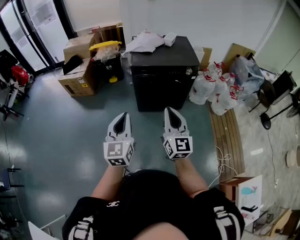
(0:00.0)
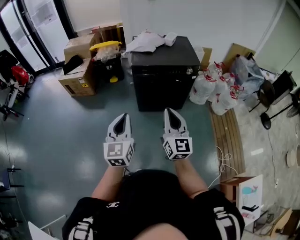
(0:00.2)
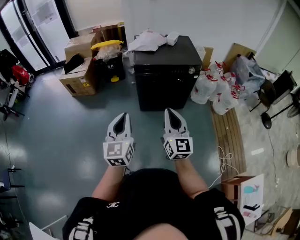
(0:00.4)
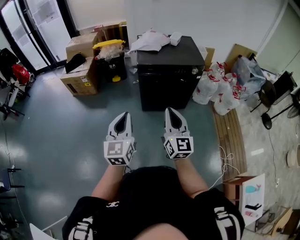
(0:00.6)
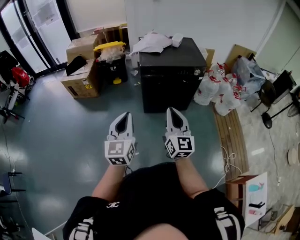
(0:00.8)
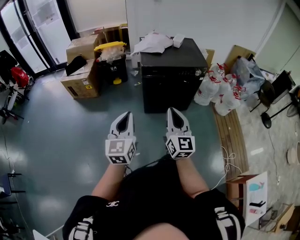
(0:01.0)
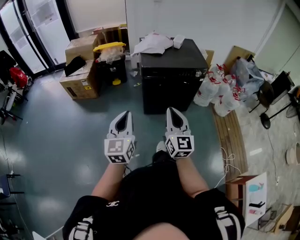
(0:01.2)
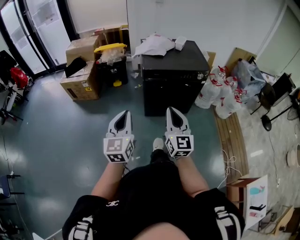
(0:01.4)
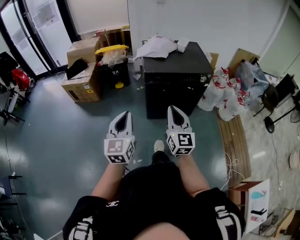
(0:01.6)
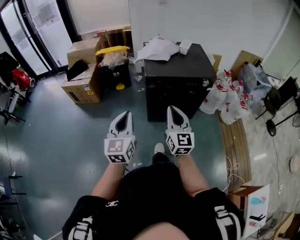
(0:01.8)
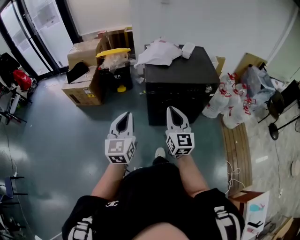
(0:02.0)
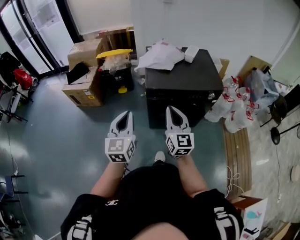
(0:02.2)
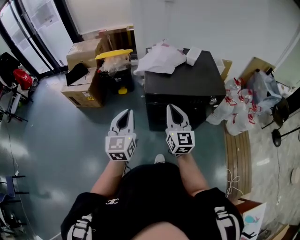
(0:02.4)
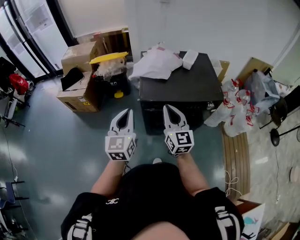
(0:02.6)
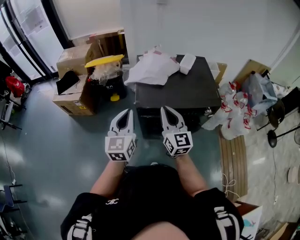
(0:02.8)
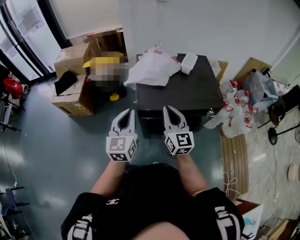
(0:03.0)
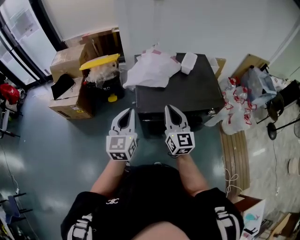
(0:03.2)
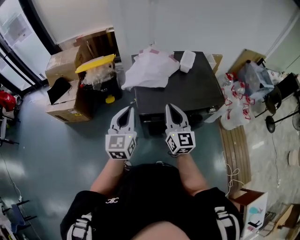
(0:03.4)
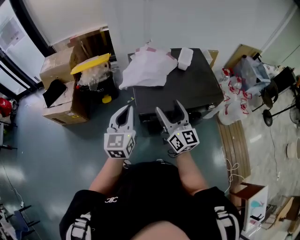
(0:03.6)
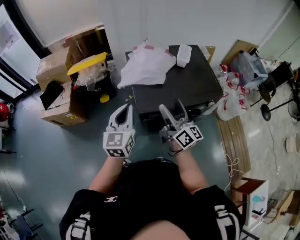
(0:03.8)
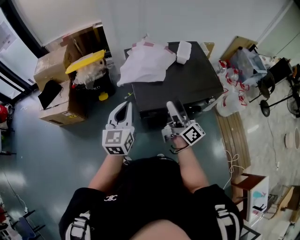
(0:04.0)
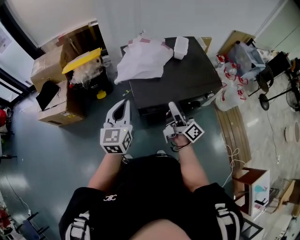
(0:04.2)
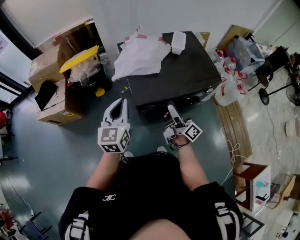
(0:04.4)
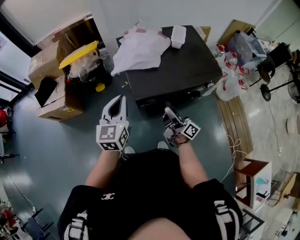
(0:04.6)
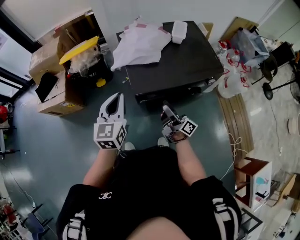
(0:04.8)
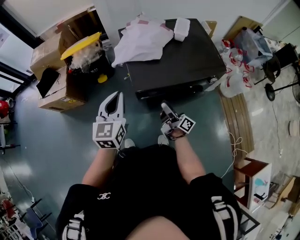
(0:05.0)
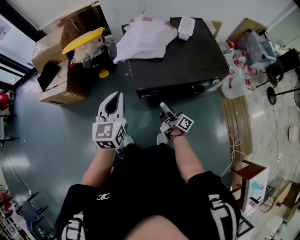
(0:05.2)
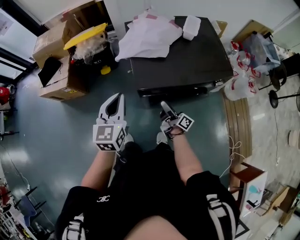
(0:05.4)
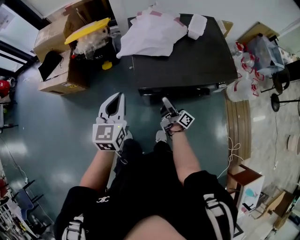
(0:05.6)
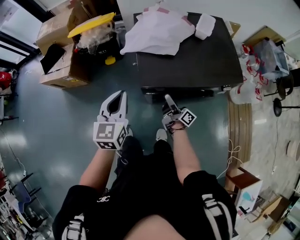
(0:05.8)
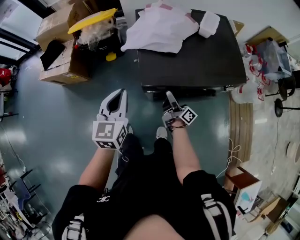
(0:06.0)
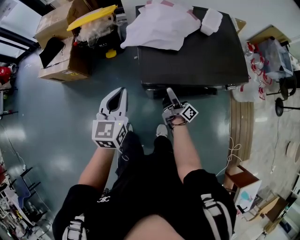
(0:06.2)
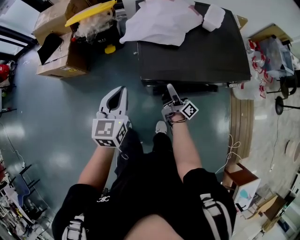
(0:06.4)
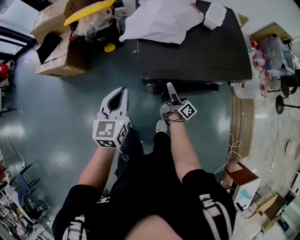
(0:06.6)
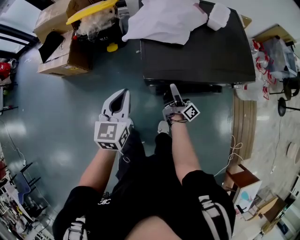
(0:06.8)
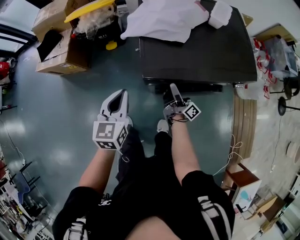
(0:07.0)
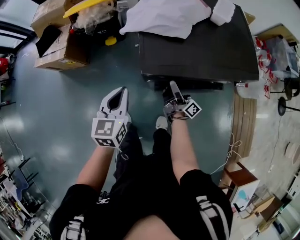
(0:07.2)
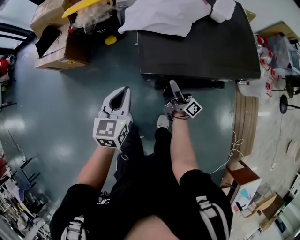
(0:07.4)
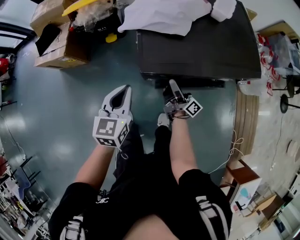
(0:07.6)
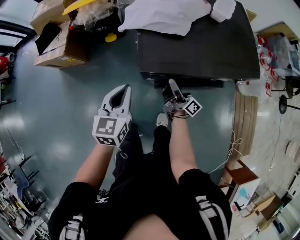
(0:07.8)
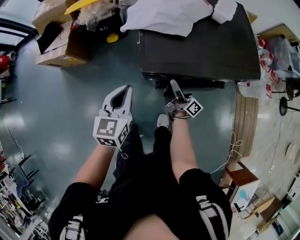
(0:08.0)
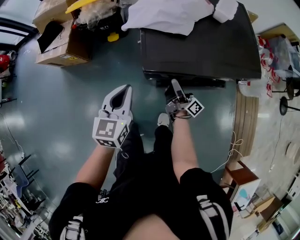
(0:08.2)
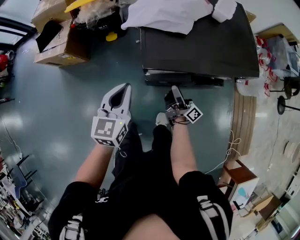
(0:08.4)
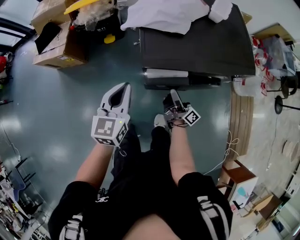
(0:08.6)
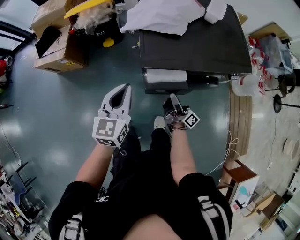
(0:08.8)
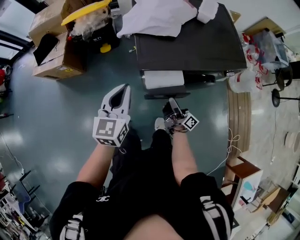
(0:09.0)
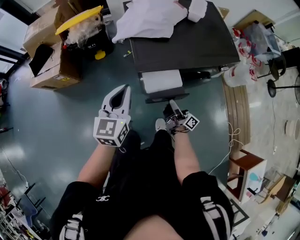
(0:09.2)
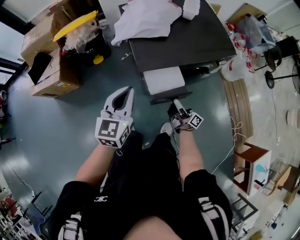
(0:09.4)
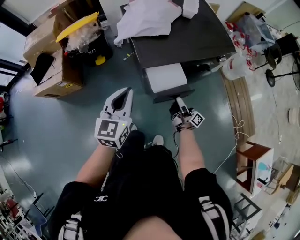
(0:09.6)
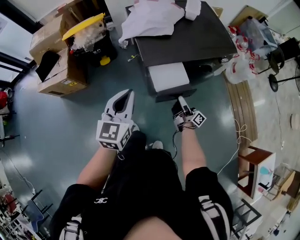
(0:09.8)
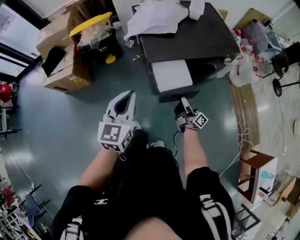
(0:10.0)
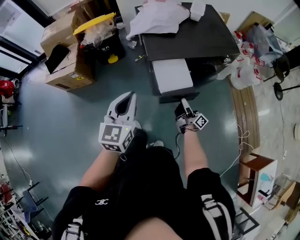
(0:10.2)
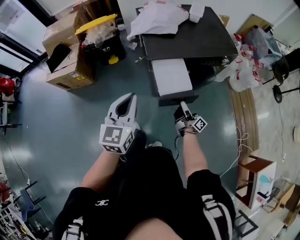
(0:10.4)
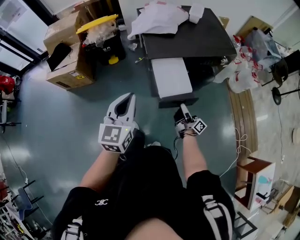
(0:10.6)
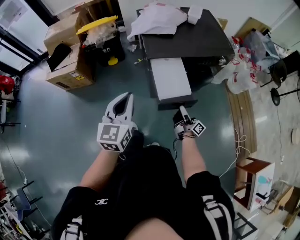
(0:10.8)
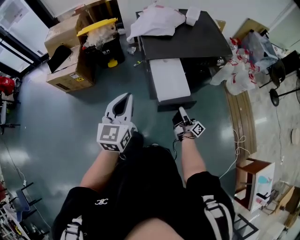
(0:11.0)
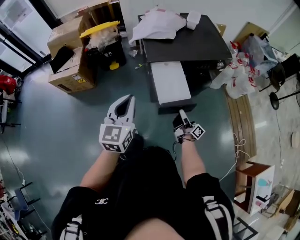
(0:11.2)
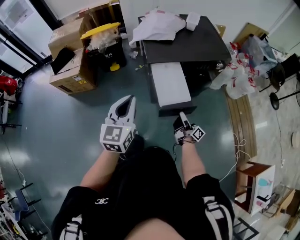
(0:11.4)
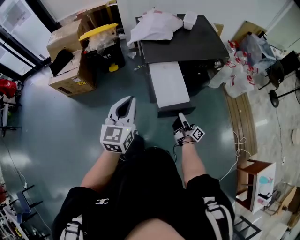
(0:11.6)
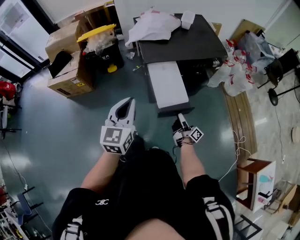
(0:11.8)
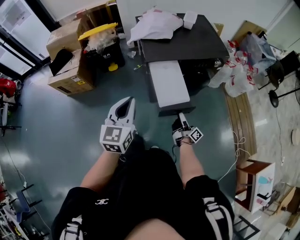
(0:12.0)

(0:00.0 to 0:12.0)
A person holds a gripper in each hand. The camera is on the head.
0:00.0 - 0:01.6: The two grippers go roughly 15 cm to the left and forward.
0:01.6 - 0:03.0: Both grippers move forward, some 40 cm.
0:03.0 - 0:04.4: The right gripper goes approximately 10 cm downward, rotates around the line of its fingers by about 60 degrees, clockwise from behind, and opens; the left gripper moves forward and to the left, about 10 cm.
0:04.4 - 0:06.0: The left gripper goes approximately 5 cm downward; the right gripper heads downward, covering about 20 cm.
0:06.0 - 0:07.6: The left gripper shifts approximately 10 cm downward, while the right gripper closes.
0:07.6 - 0:09.0: The left gripper travels upward by some 5 cm. The right gripper shifts approximately 10 cm backward.
0:09.0 - 0:10.4: Both grippers move backward, roughly 15 cm.
0:10.4 - 0:12.0: The right gripper heads backward, covering roughly 5 cm.

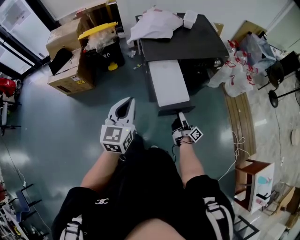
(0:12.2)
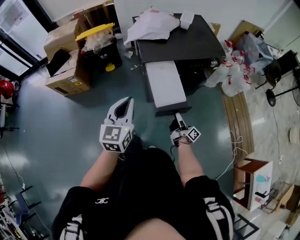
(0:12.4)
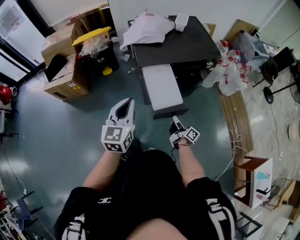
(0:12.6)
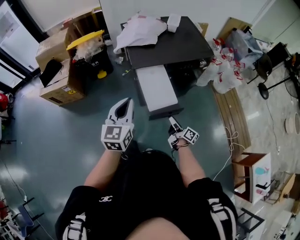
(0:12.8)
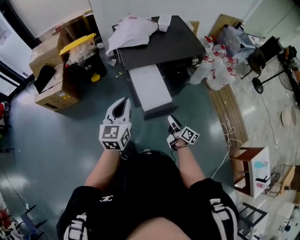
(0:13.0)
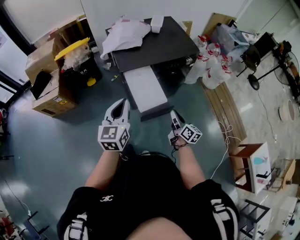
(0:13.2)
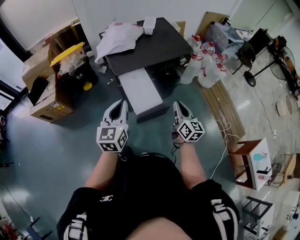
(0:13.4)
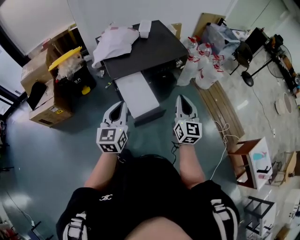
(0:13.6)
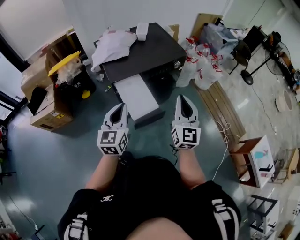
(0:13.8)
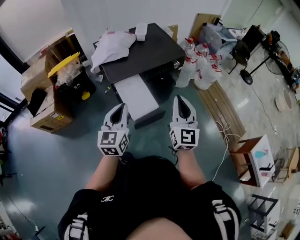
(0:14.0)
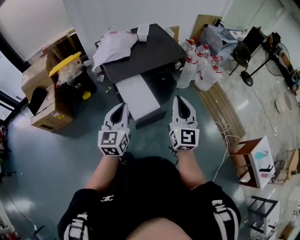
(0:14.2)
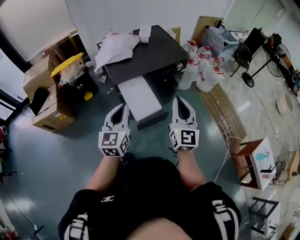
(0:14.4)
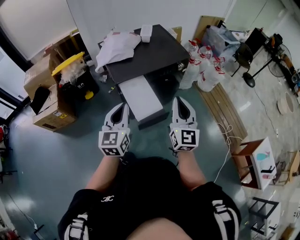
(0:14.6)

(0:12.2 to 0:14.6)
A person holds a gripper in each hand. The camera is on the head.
0:12.2 - 0:13.4: The right gripper travels upward by approximately 20 cm, rolls counterclockwise, seen from behind, by some 60 degrees, and closes up, while the left gripper travels to the right by approximately 5 cm.
0:13.4 - 0:14.6: The right gripper moves upward, approximately 15 cm, and turns by about 30 degrees.

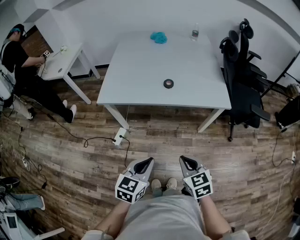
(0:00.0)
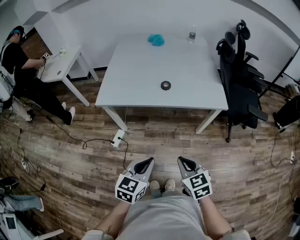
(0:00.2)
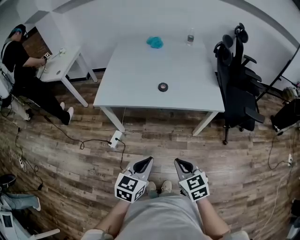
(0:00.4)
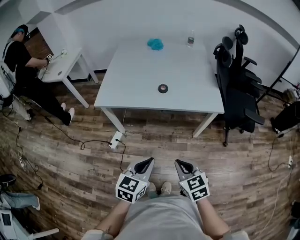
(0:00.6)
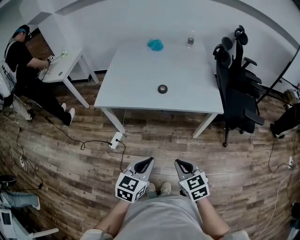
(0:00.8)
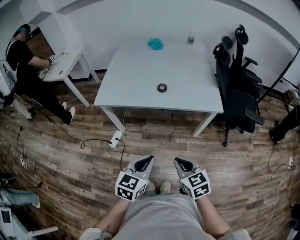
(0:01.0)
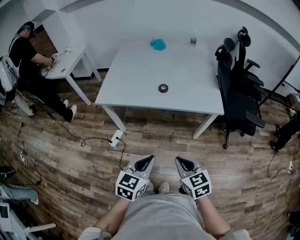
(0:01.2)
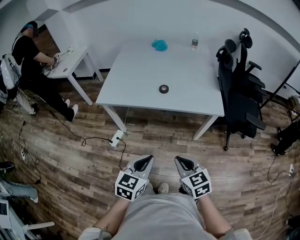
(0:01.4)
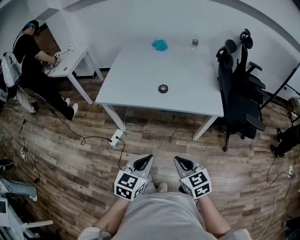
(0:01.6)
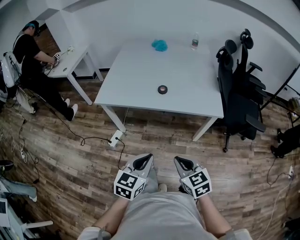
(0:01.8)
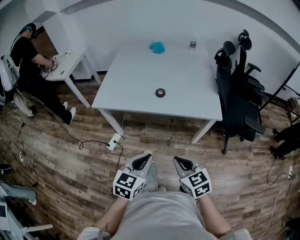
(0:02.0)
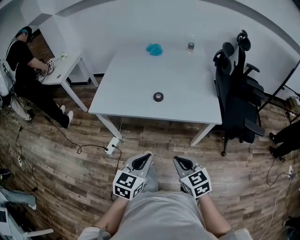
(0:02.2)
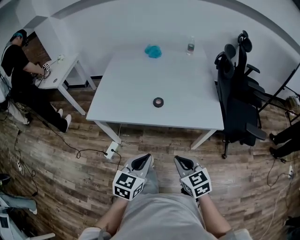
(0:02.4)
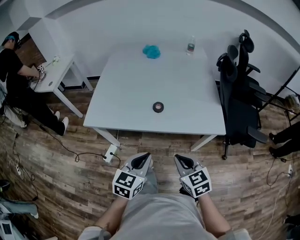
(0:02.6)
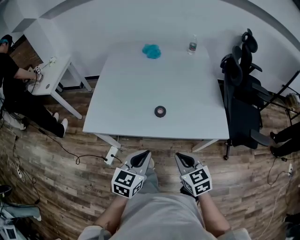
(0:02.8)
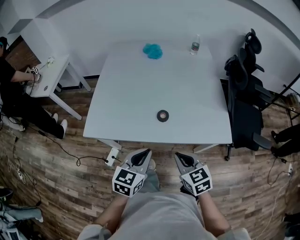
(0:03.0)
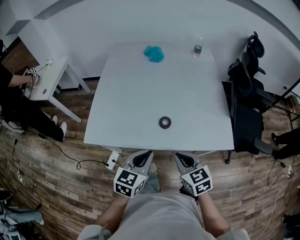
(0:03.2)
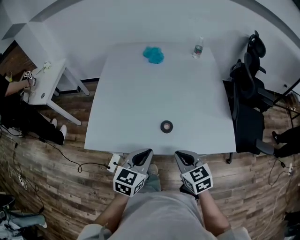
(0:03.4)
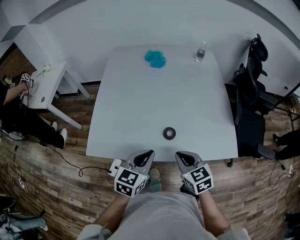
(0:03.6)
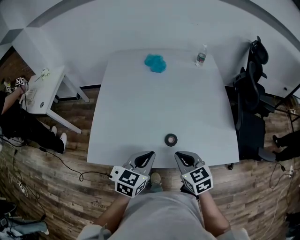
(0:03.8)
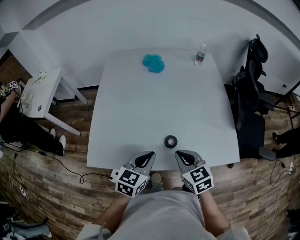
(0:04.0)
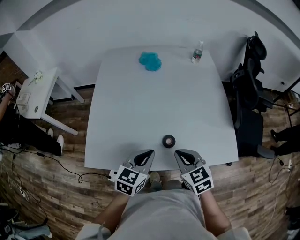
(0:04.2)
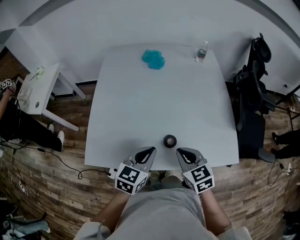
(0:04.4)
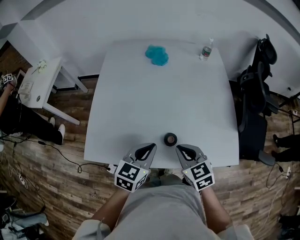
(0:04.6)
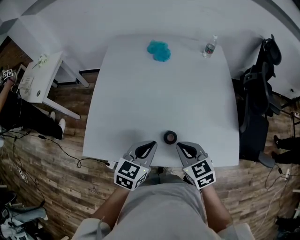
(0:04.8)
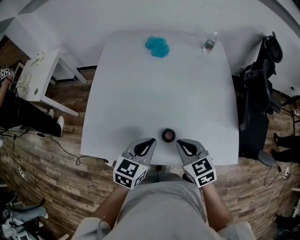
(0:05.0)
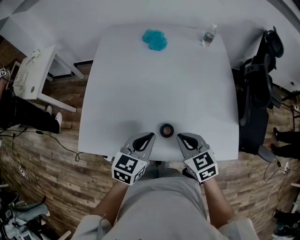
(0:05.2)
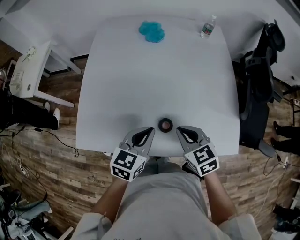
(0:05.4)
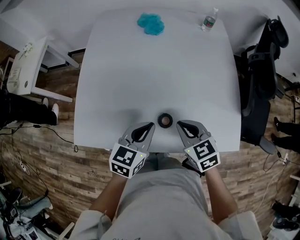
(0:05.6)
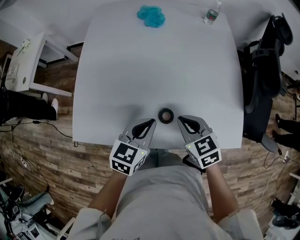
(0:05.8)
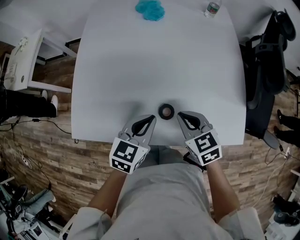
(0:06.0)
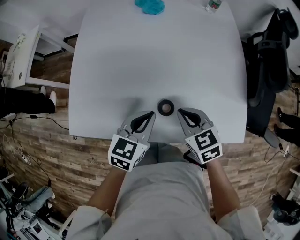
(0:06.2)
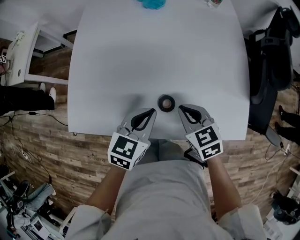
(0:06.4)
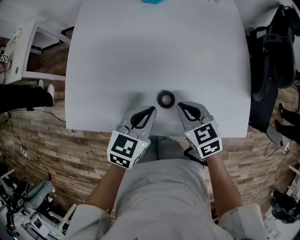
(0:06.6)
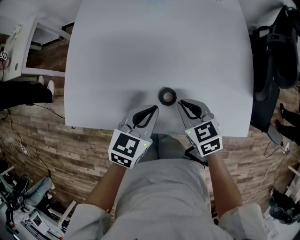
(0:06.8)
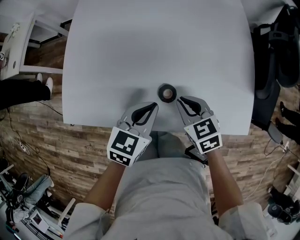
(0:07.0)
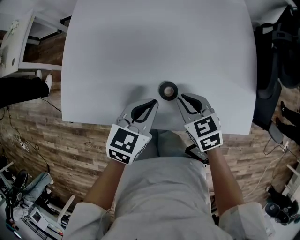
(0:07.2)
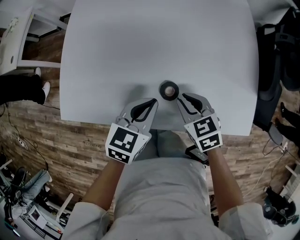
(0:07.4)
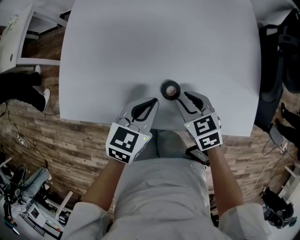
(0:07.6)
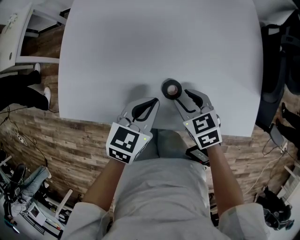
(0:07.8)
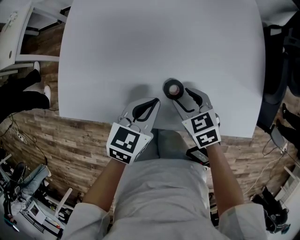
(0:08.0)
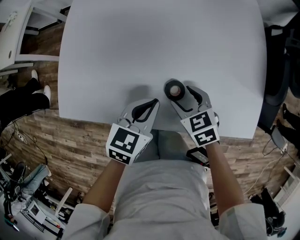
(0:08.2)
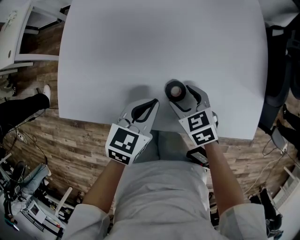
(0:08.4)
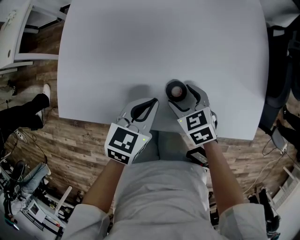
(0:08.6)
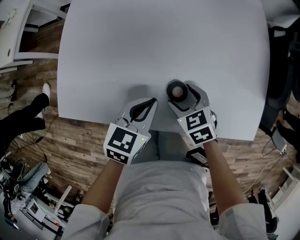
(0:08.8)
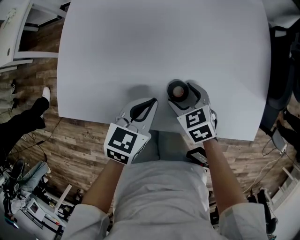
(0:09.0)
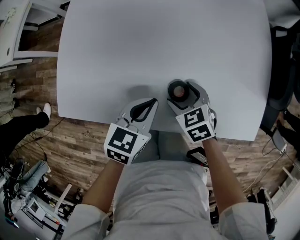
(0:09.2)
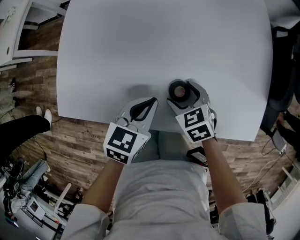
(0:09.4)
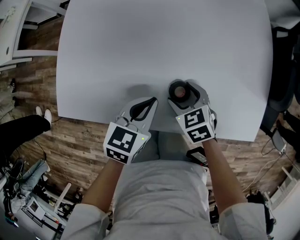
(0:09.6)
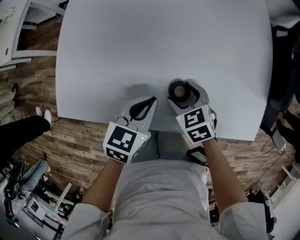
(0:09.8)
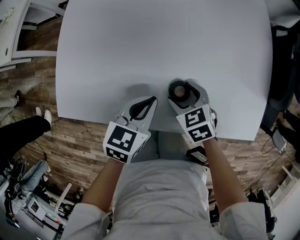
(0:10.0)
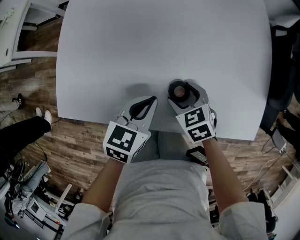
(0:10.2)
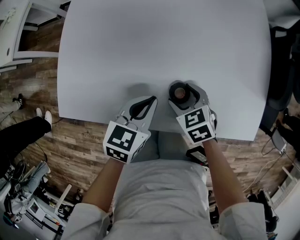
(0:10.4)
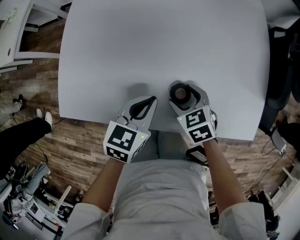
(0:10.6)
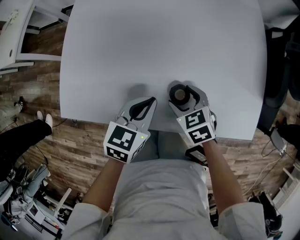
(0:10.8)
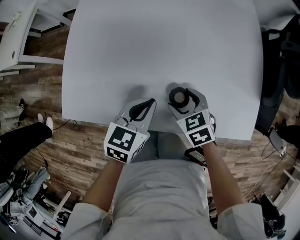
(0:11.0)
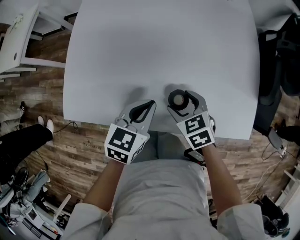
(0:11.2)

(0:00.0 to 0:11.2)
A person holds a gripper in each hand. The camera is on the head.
0:00.0 - 0:01.6: The left gripper travels to the right by some 5 cm, while the right gripper ends up approximately 5 cm from where it was.
0:01.6 - 0:03.2: Both grippers travel together forward, roughly 30 cm.
0:03.2 - 0:04.8: The grippers both shift forward by roughly 15 cm.
0:04.8 - 0:06.4: The two grippers go about 5 cm downward.
0:06.4 - 0:08.0: The grippers both shift downward by about 5 cm. The right gripper opens its fingers.
0:08.0 - 0:09.6: The right gripper opens its fingers.
0:09.6 - 0:11.2: The right gripper is displaced upward by approximately 5 cm.
